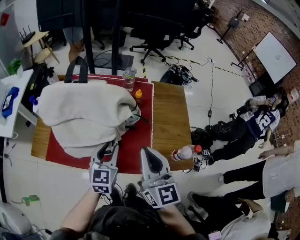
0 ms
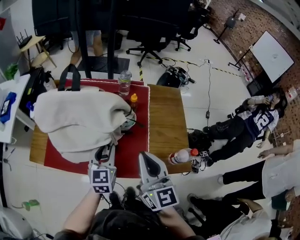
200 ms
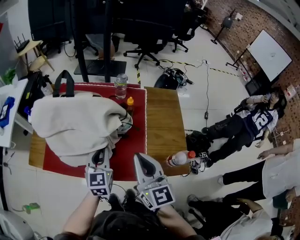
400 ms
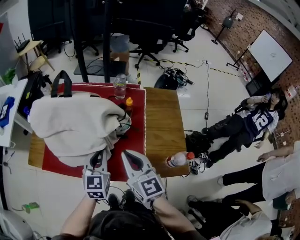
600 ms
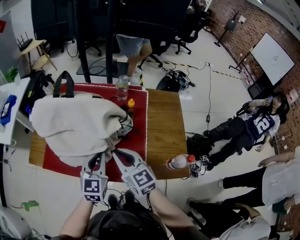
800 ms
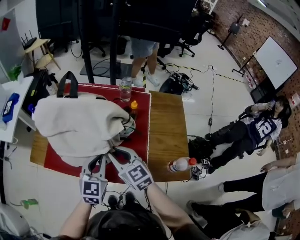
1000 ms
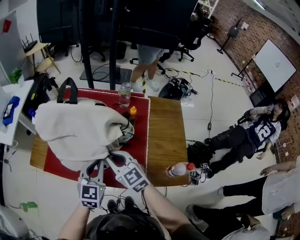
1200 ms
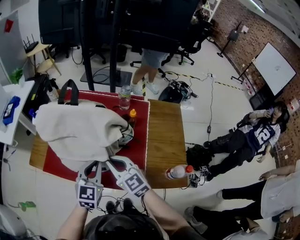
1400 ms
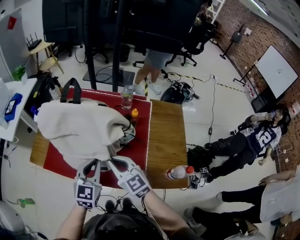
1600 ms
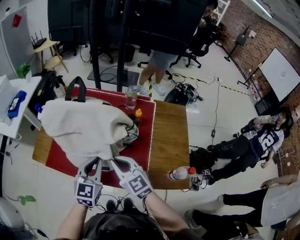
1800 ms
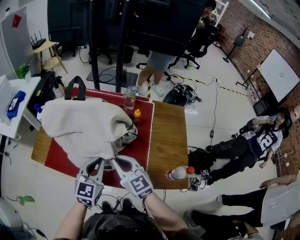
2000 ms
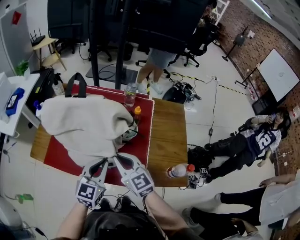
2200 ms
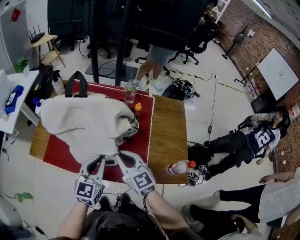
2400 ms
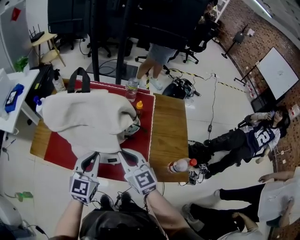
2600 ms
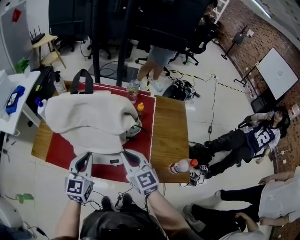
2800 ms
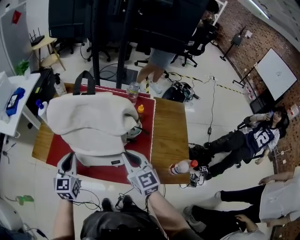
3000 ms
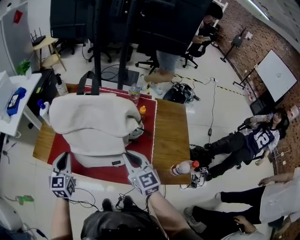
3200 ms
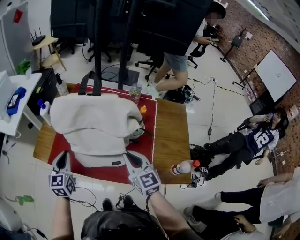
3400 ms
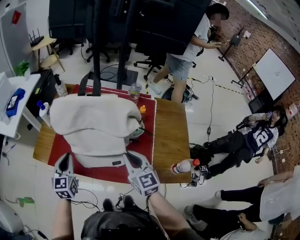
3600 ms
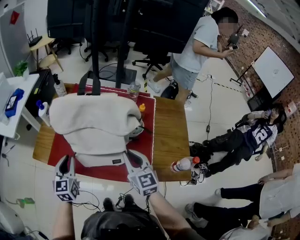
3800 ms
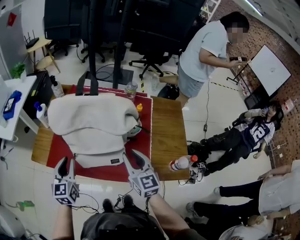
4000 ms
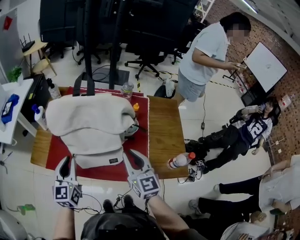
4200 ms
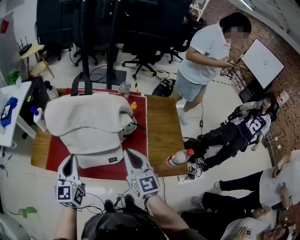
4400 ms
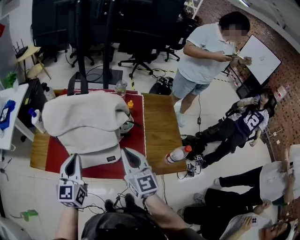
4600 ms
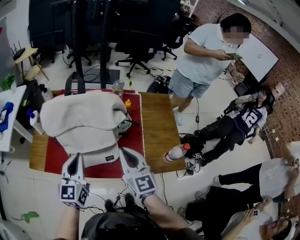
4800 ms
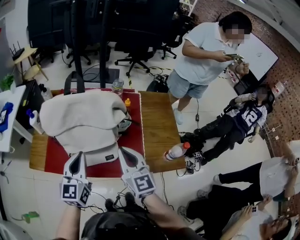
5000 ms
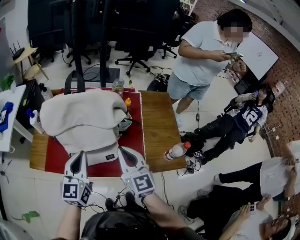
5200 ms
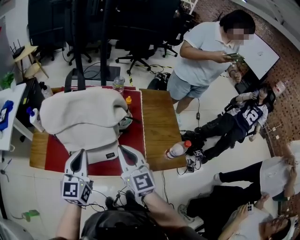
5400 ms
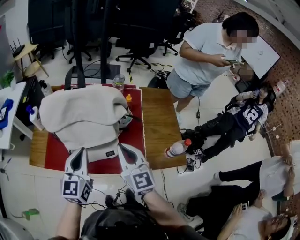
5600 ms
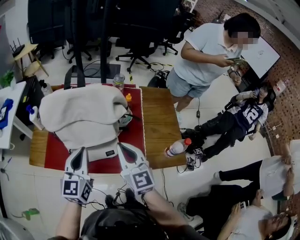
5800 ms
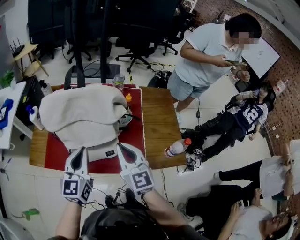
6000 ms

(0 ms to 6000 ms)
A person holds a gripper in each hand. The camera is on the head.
0 ms - 1600 ms: The left gripper closes its fingers. The right gripper goes some 15 cm downward, to the left and forward, and swivels some 40 degrees.
1600 ms - 3000 ms: The left gripper goes approximately 15 cm to the left.
3000 ms - 4400 ms: The left gripper travels upward by approximately 5 cm, and opens and closes again, while the right gripper shifts by some 5 cm.
4400 ms - 6000 ms: The left gripper heads to the right, covering some 5 cm.

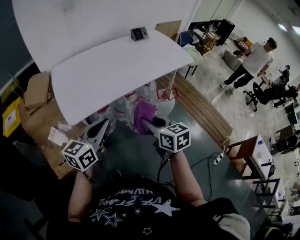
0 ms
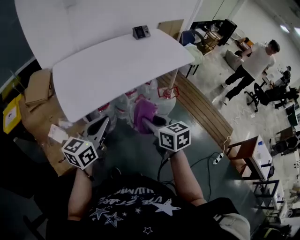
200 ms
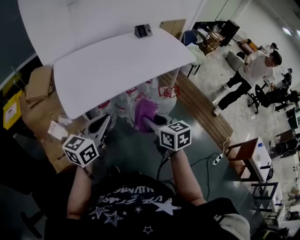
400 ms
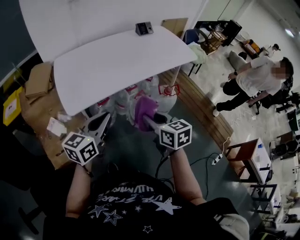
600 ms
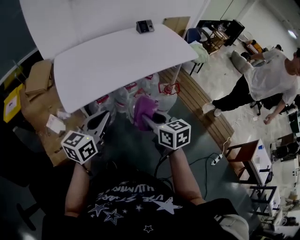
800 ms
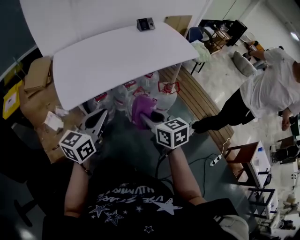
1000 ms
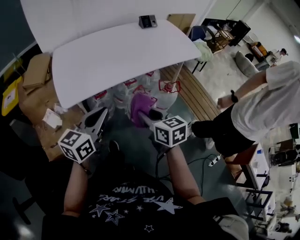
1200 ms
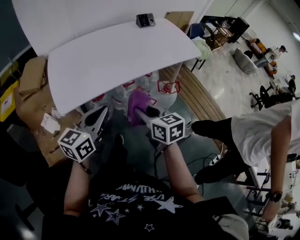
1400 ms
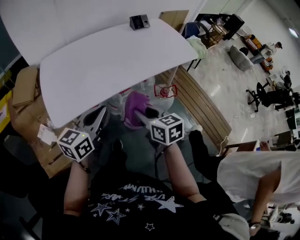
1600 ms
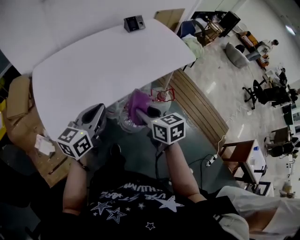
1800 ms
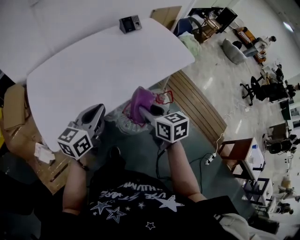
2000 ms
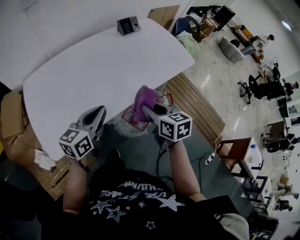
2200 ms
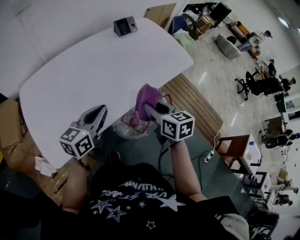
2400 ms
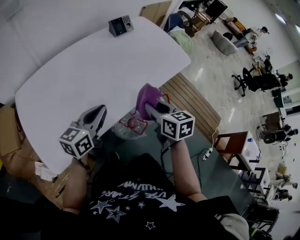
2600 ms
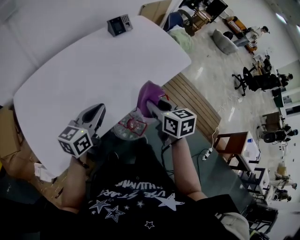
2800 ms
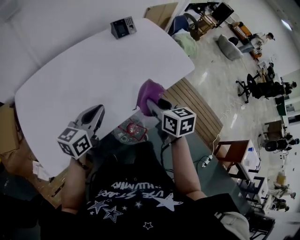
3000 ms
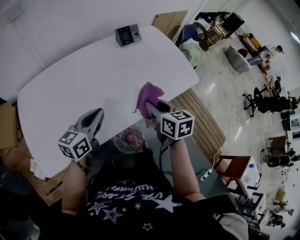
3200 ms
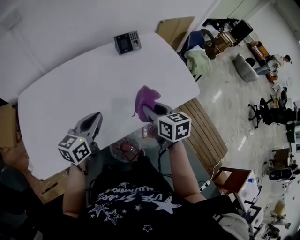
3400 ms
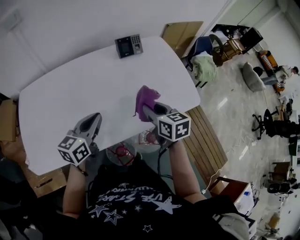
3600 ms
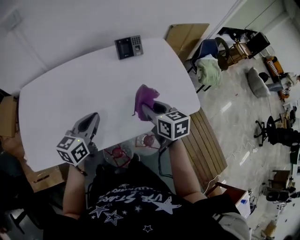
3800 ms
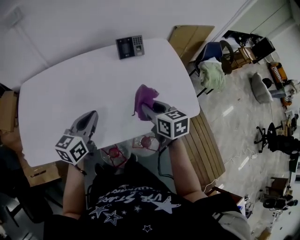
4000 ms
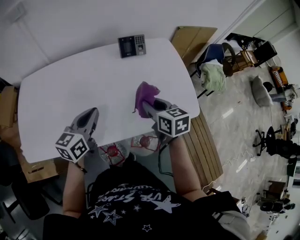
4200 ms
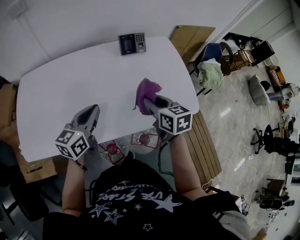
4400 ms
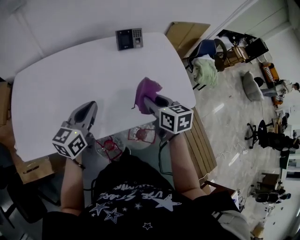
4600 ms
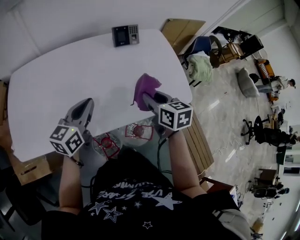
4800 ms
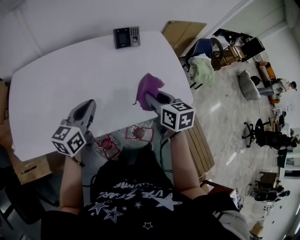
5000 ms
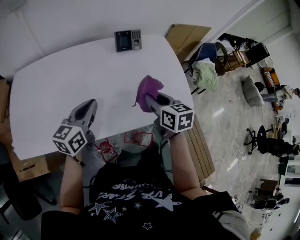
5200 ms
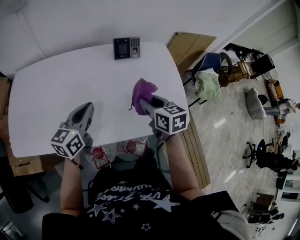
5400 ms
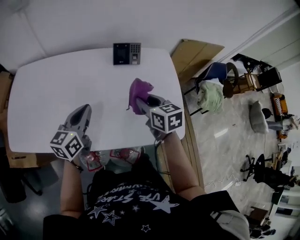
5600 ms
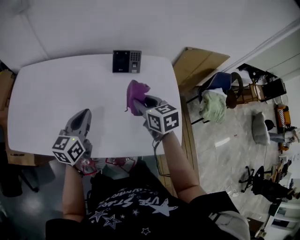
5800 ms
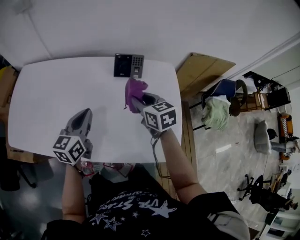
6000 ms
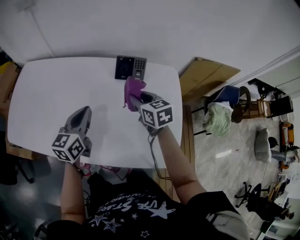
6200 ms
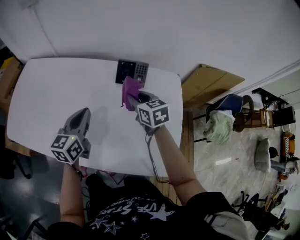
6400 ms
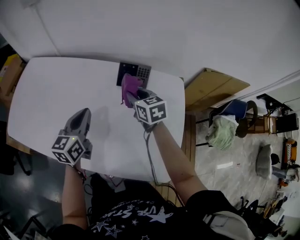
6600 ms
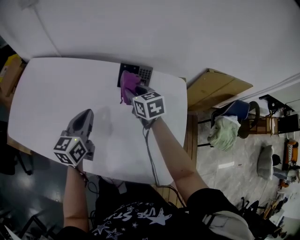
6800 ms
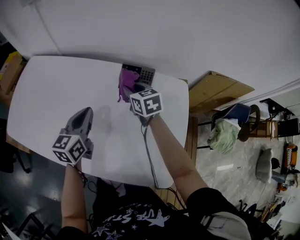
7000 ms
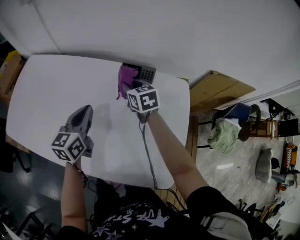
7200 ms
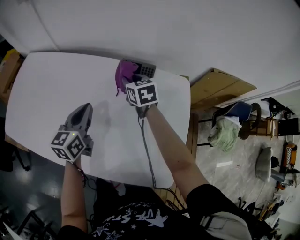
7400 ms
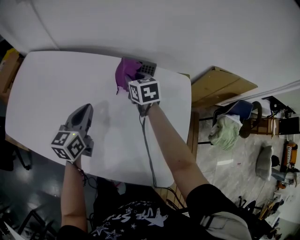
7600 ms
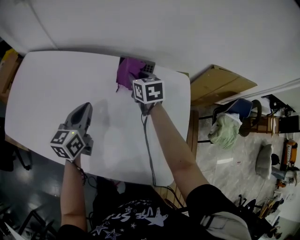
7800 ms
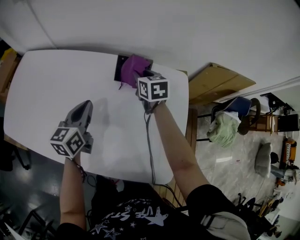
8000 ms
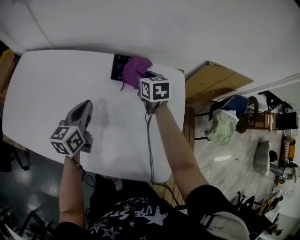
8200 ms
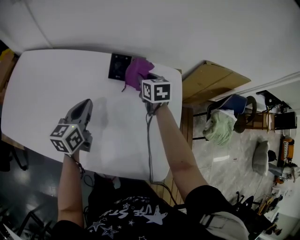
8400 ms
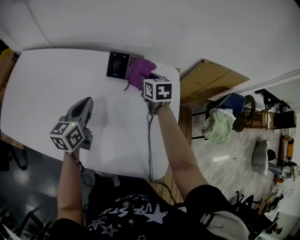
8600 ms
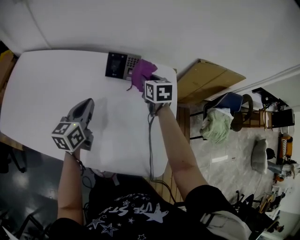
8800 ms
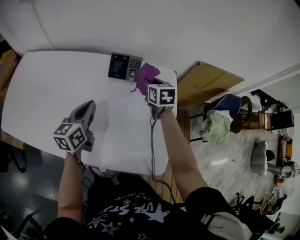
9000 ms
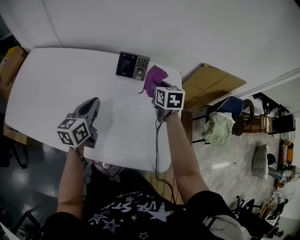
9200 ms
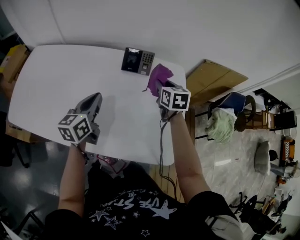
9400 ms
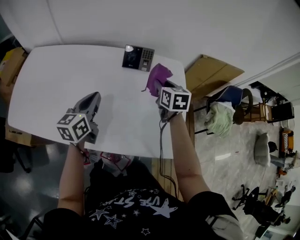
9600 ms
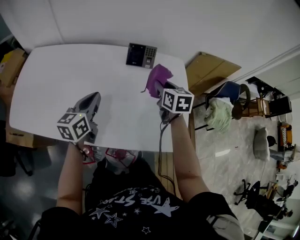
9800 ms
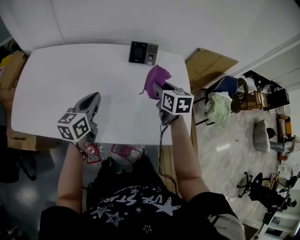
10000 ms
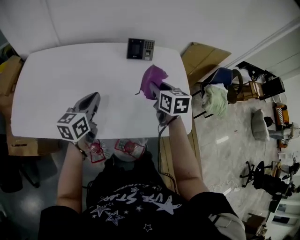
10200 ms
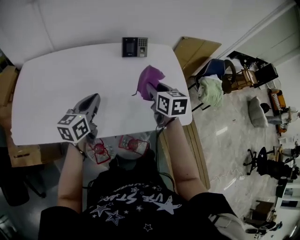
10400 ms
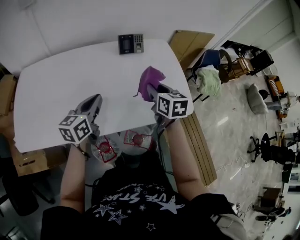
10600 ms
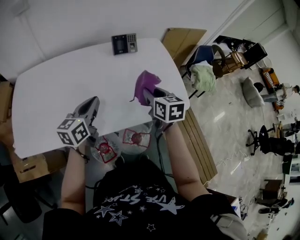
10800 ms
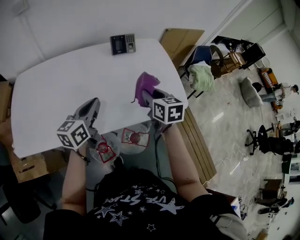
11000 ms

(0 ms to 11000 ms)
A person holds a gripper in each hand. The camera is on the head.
0 ms - 1600 ms: The left gripper travels forward and to the right by about 10 cm. The right gripper heads forward, covering some 10 cm.
1600 ms - 3200 ms: Both grippers move forward, some 35 cm.
3200 ms - 4800 ms: The two grippers go approximately 15 cm to the right and forward.
4800 ms - 6200 ms: The right gripper ends up about 25 cm from where it was, and swivels about 30 degrees. Meanwhile the left gripper changes place by about 20 cm, and swivels about 30 degrees.
6200 ms - 7800 ms: The left gripper shifts some 10 cm forward and downward; the right gripper is displaced forward and downward by roughly 15 cm.
7800 ms - 9400 ms: The left gripper is displaced backward by some 5 cm, while the right gripper travels backward and to the right by about 15 cm.
9400 ms - 11000 ms: The left gripper shifts approximately 20 cm backward and to the left, and rotates about 30 degrees, while the right gripper travels backward by roughly 30 cm.

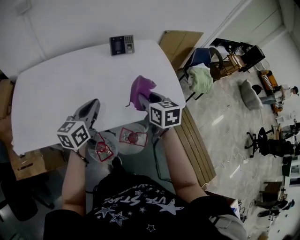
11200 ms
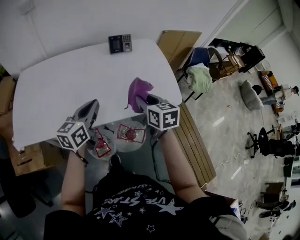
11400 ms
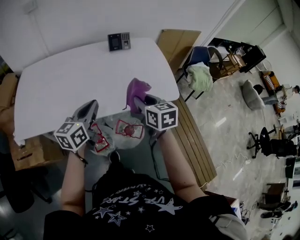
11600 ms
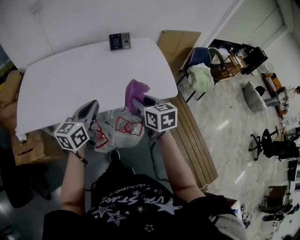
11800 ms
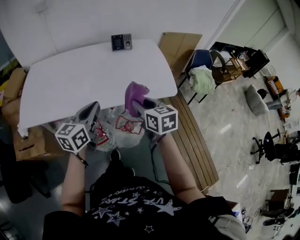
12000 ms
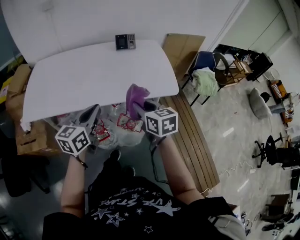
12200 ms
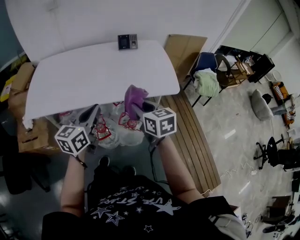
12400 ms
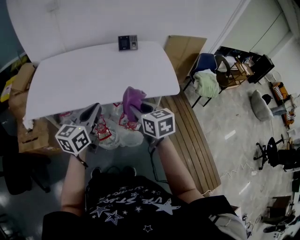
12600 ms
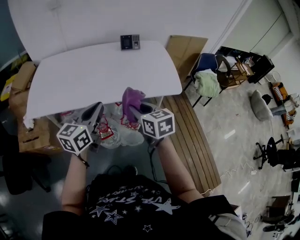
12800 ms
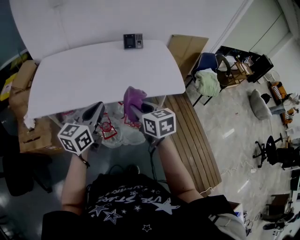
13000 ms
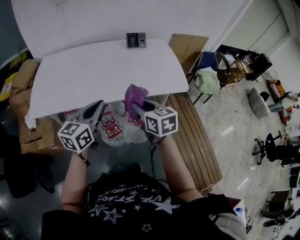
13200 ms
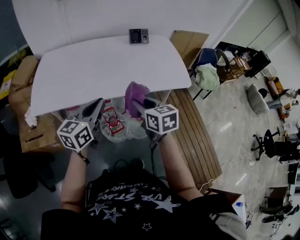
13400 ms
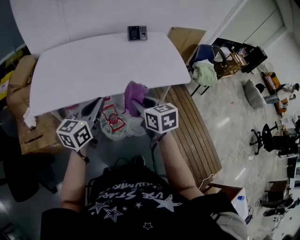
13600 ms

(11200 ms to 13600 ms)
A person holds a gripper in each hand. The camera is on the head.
11200 ms - 12400 ms: The grippers both shift backward by approximately 20 cm.
12400 ms - 13600 ms: Both grippers travel together to the left, roughly 15 cm.

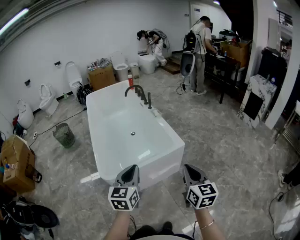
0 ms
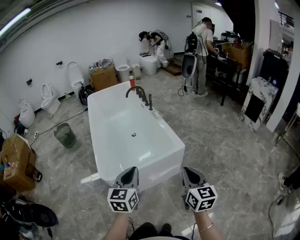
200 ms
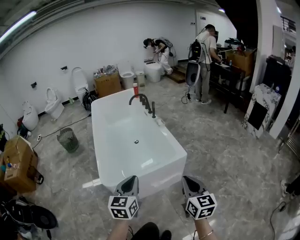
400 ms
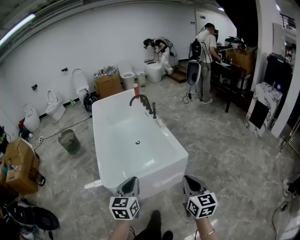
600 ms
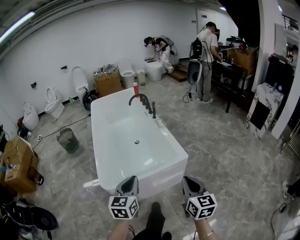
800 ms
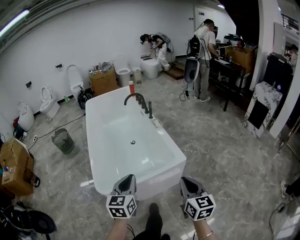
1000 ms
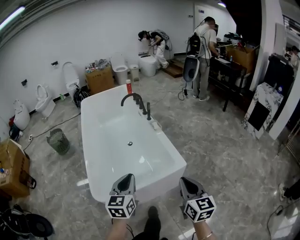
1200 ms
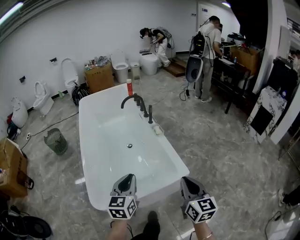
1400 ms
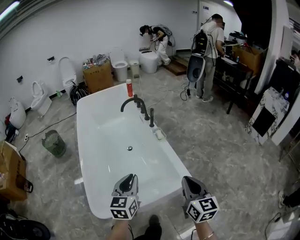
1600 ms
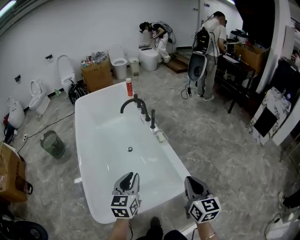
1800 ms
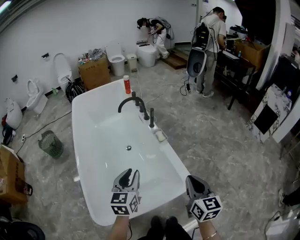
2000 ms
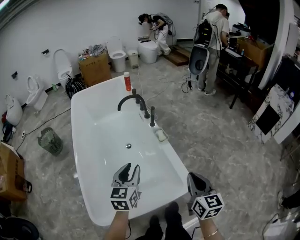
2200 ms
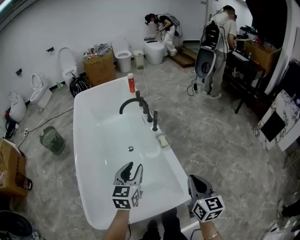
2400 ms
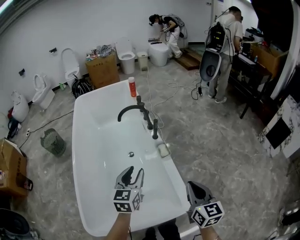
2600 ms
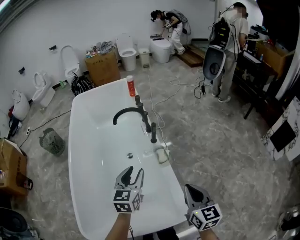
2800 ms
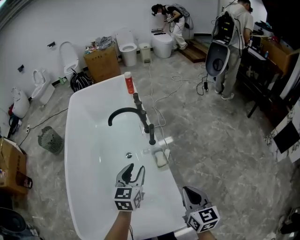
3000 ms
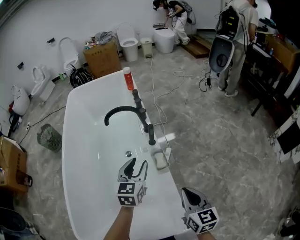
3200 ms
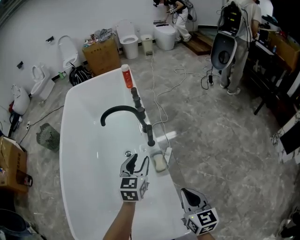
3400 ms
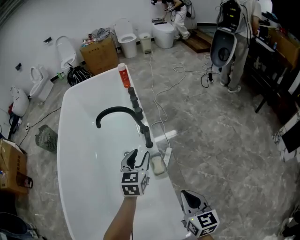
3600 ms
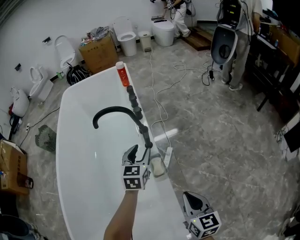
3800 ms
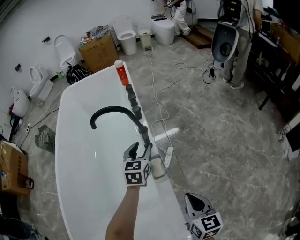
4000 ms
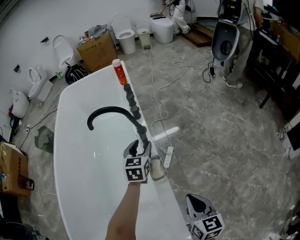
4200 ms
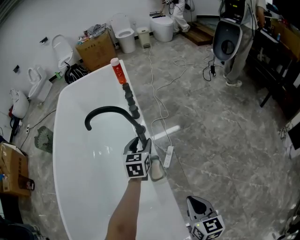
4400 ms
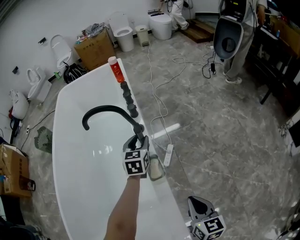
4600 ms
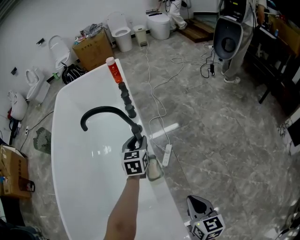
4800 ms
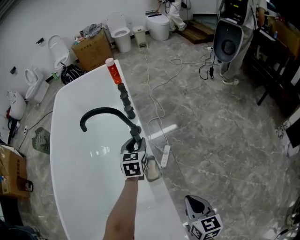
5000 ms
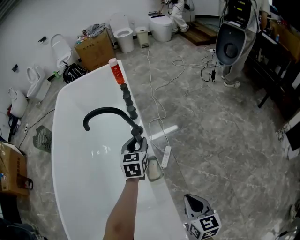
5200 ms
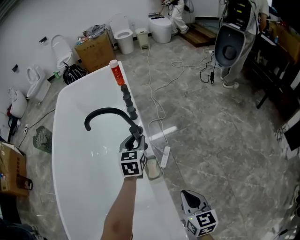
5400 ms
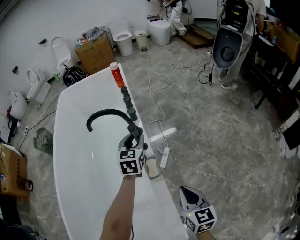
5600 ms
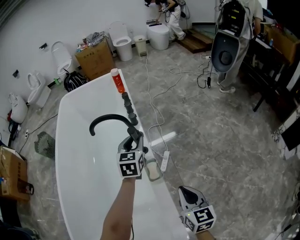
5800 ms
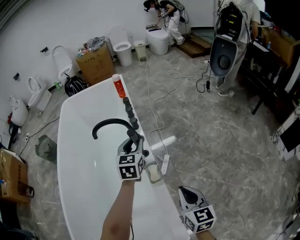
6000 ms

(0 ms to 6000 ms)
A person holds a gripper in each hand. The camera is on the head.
0 ms - 1600 ms: The pair of grippers is taken forward, about 50 cm.
1600 ms - 3000 ms: Both grippers are carried forward, some 60 cm. The left gripper opens.
3000 ms - 4400 ms: The right gripper is displaced downward, forward and to the right by about 30 cm. The left gripper moves forward, downward and to the right, about 40 cm.
4400 ms - 6000 ms: Both grippers travel together upward, some 15 cm.
